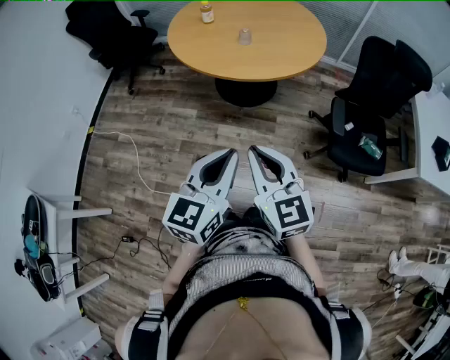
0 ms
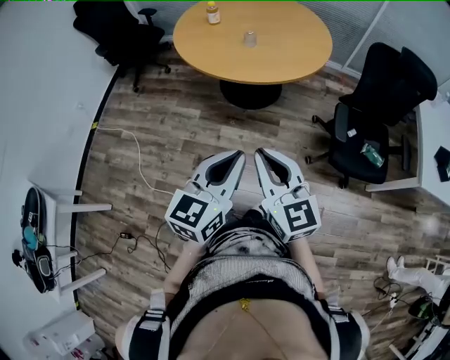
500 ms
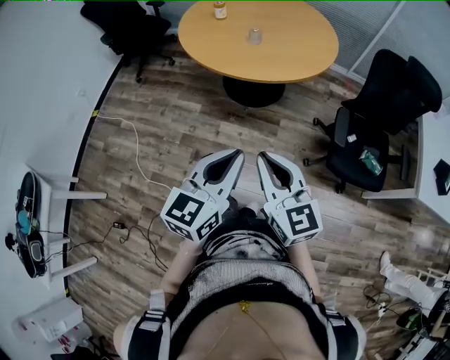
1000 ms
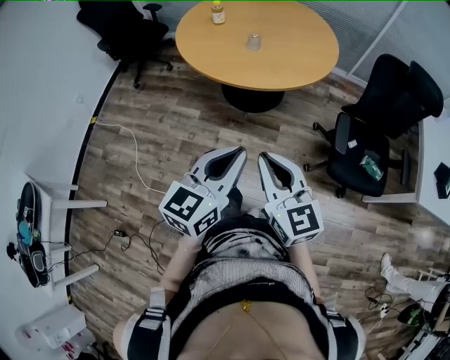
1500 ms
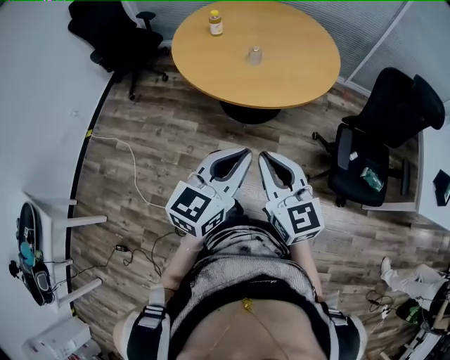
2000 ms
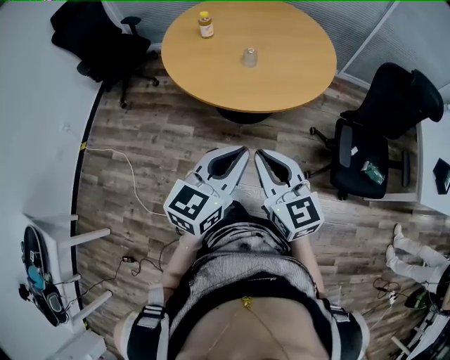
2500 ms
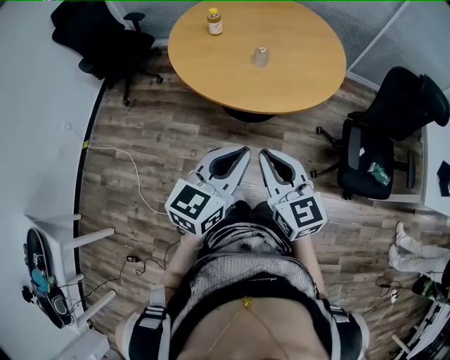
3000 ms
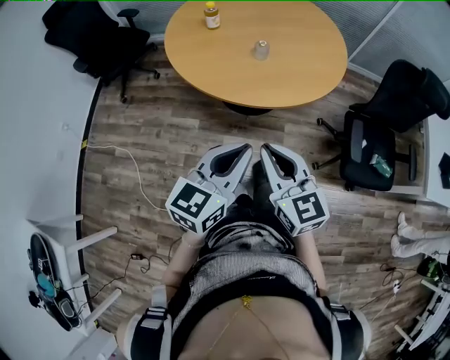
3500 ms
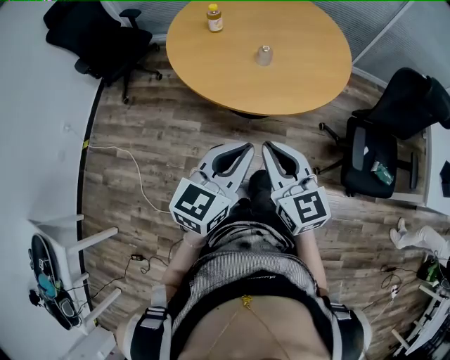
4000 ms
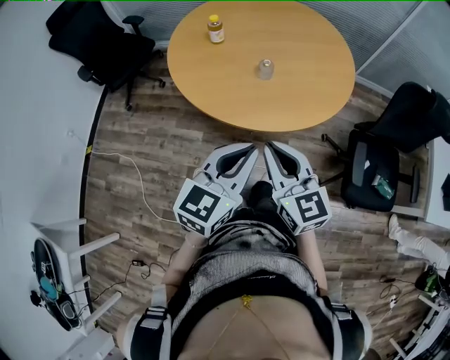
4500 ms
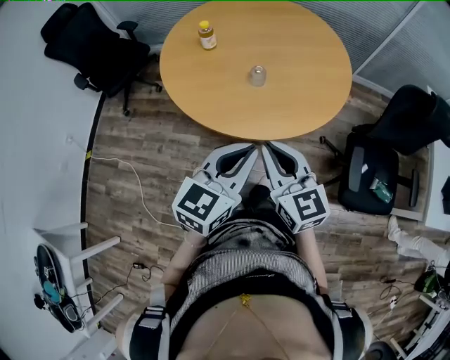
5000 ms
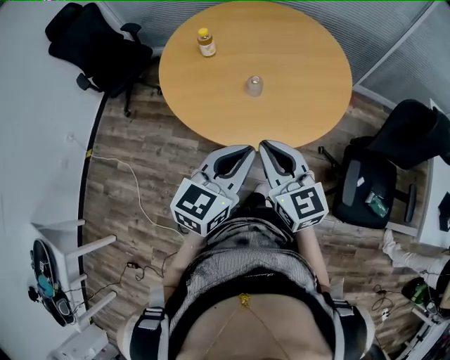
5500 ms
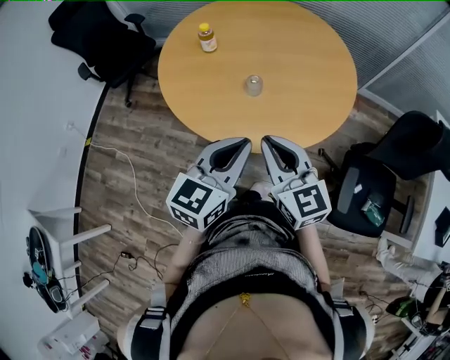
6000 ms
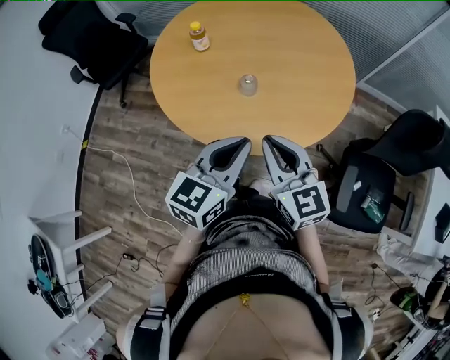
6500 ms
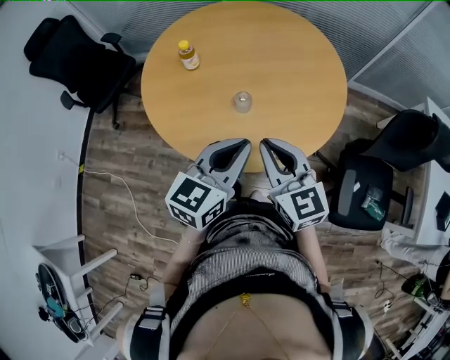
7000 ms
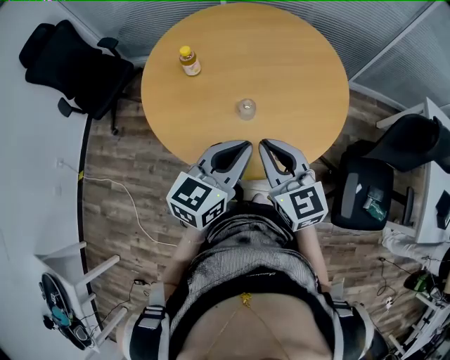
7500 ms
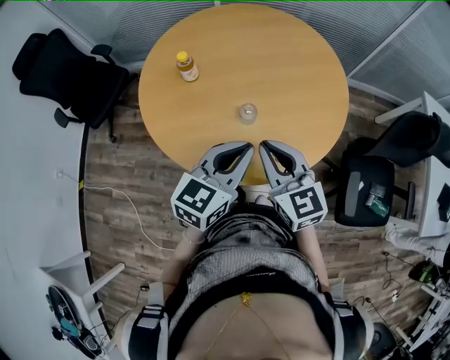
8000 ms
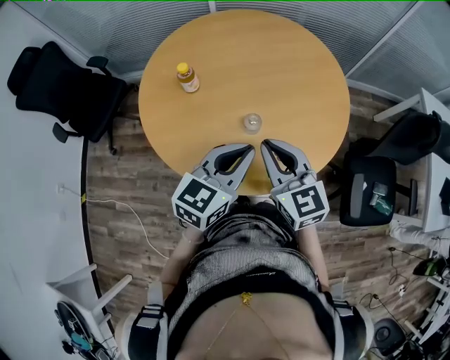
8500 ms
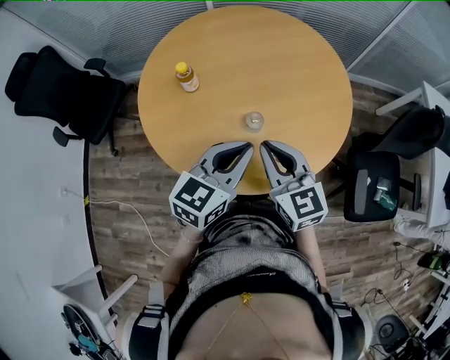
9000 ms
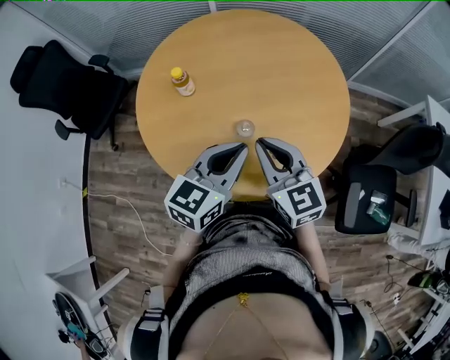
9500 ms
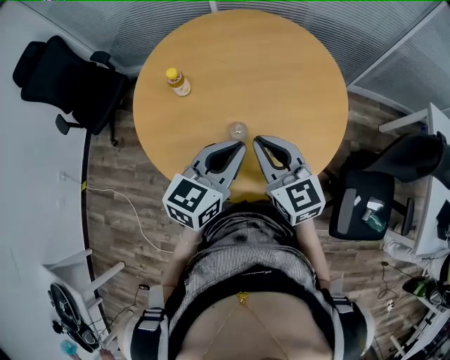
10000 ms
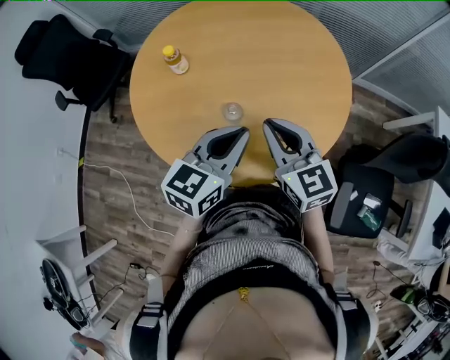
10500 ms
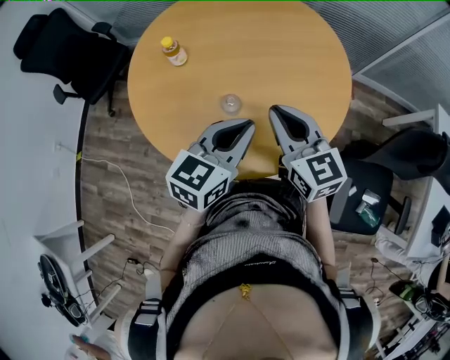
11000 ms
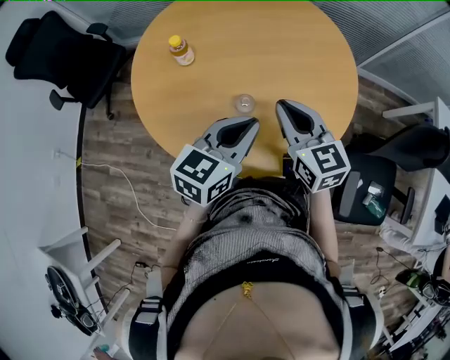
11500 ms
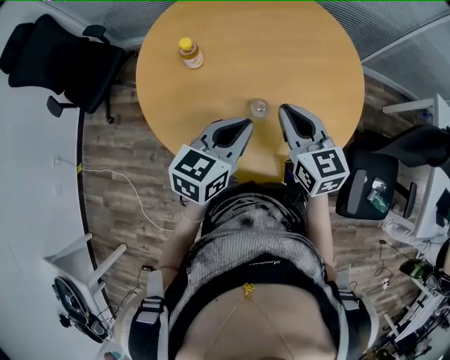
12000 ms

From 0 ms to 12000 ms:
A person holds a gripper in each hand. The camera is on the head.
From 0 ms to 2000 ms: Both grippers move forward, about 15 cm.
From 2000 ms to 4000 ms: The two grippers go some 15 cm forward and to the left.
From 4000 ms to 6000 ms: Both grippers travel together forward and to the right, about 20 cm.
From 6000 ms to 8000 ms: Both grippers move forward, some 10 cm.
From 8000 ms to 10000 ms: The grippers both shift forward by approximately 10 cm.
From 10000 ms to 12000 ms: The right gripper reaches approximately 5 cm to the right, then returns, while the left gripper heads to the left, covering approximately 5 cm.

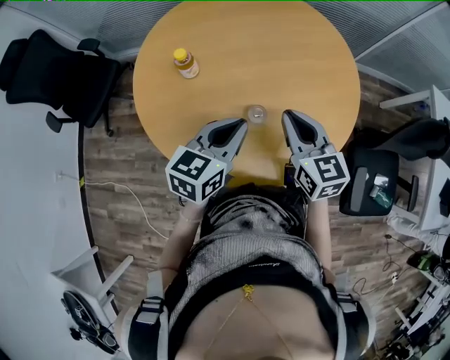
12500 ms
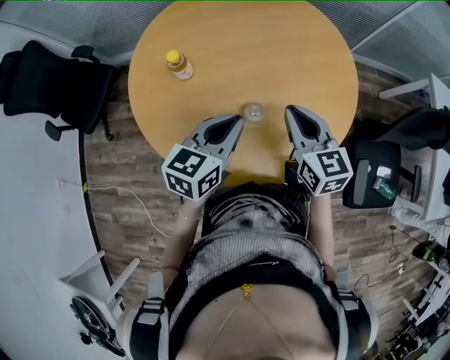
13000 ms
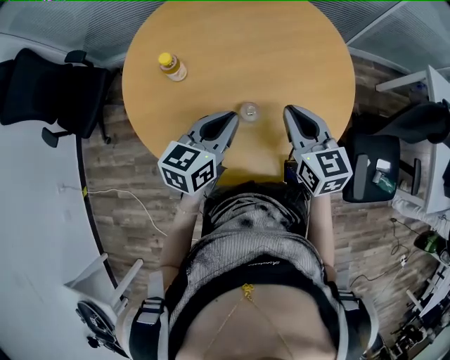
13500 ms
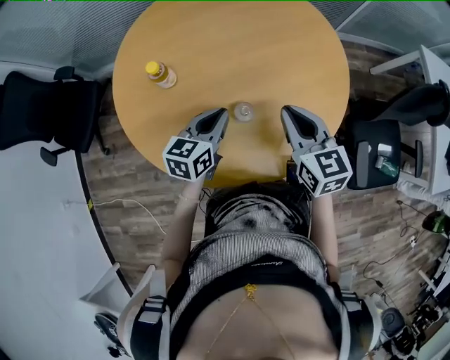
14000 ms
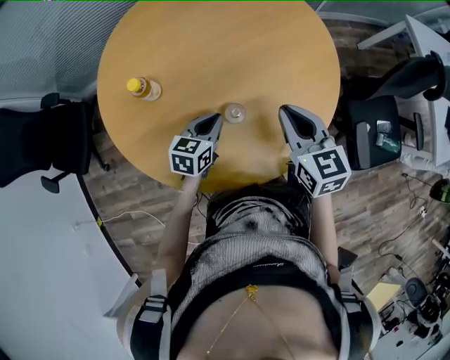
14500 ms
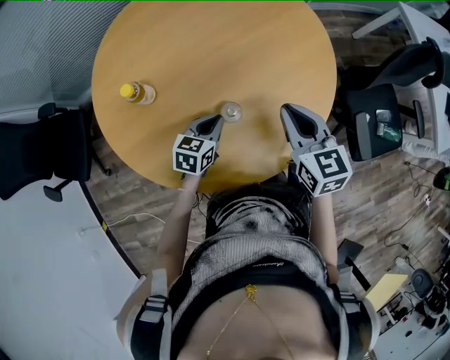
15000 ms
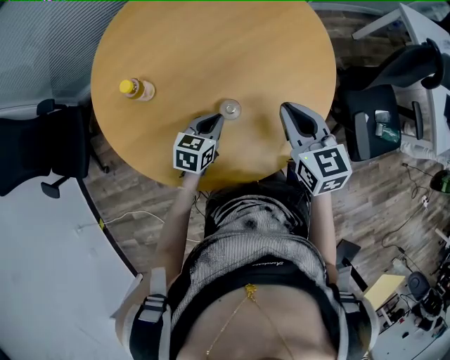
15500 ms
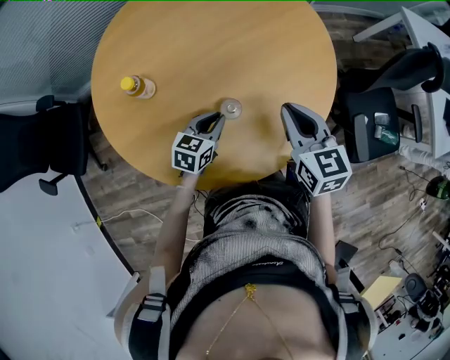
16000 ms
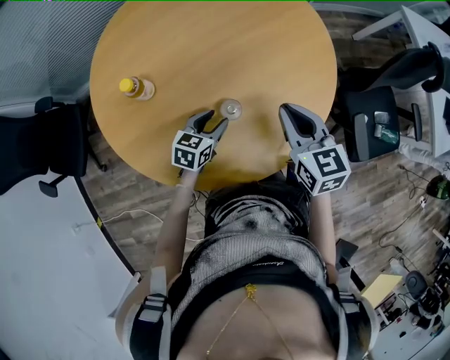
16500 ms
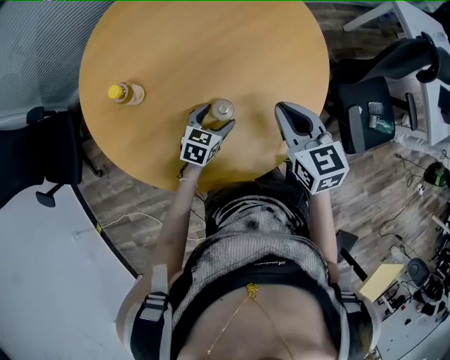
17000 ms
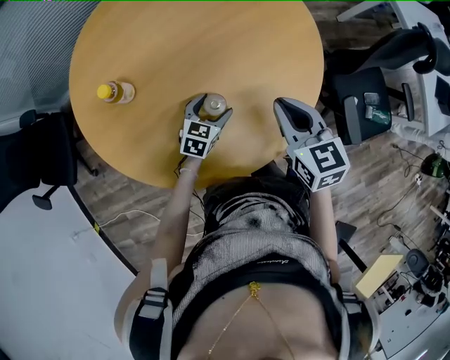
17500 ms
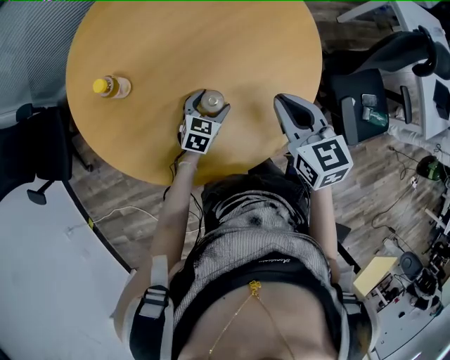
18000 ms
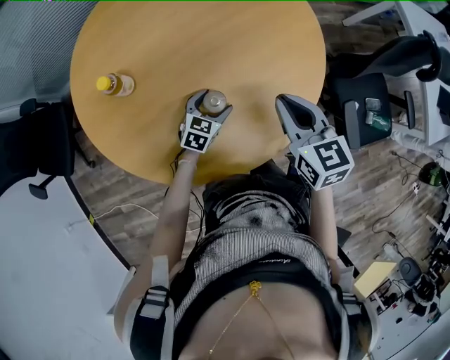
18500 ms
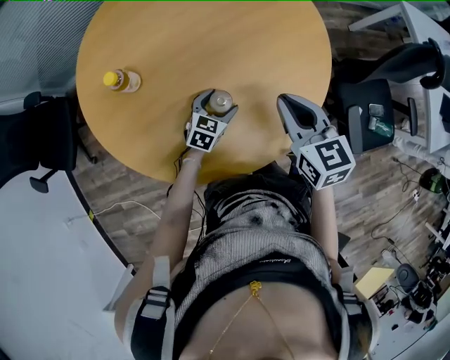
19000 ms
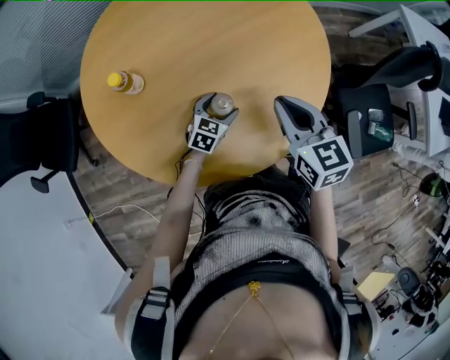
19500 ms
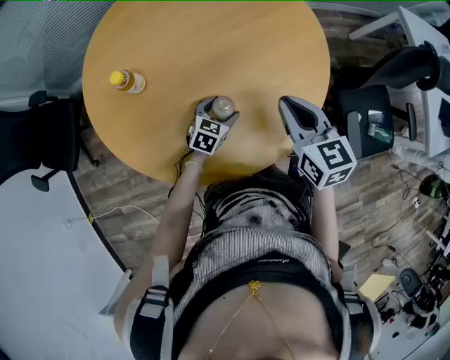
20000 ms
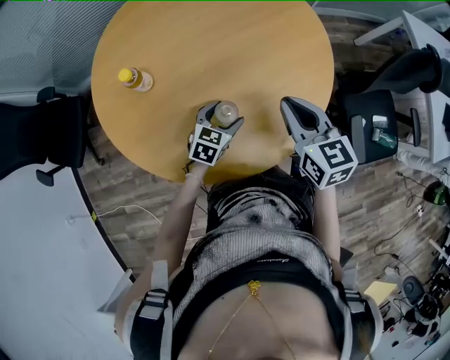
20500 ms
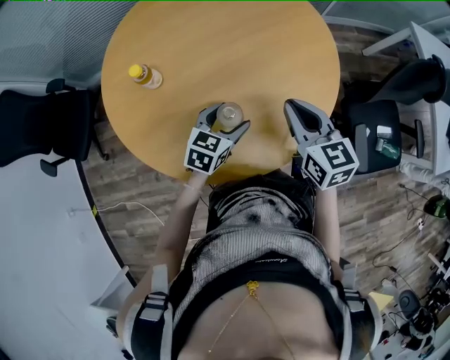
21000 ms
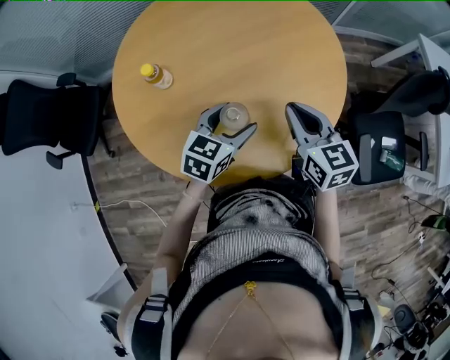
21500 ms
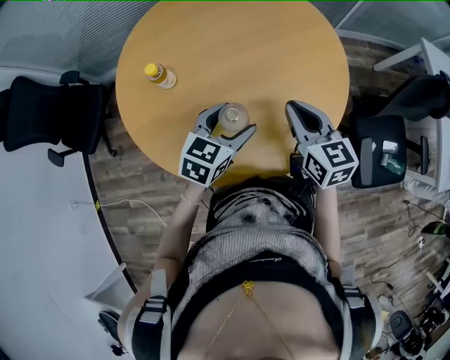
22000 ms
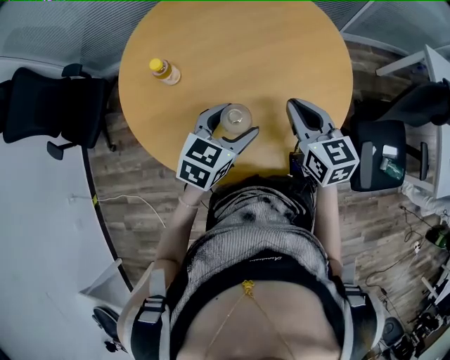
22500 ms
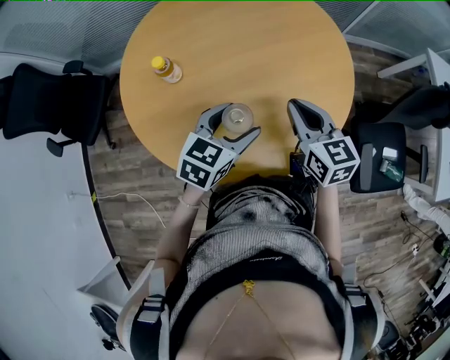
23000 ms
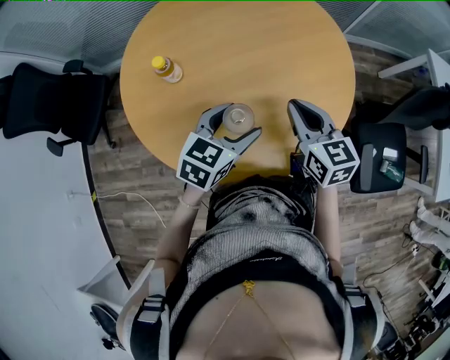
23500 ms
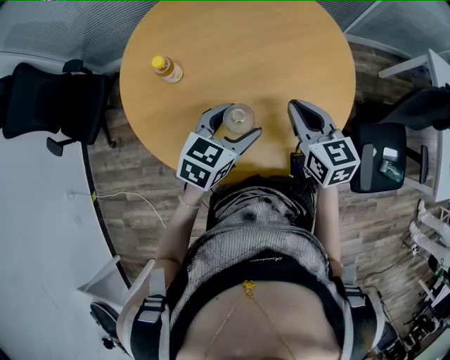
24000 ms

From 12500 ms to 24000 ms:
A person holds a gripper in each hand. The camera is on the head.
From 12500 ms to 14500 ms: The left gripper travels downward by roughly 15 cm. The right gripper changes place by about 5 cm.
From 14500 ms to 16500 ms: The left gripper opens its fingers.
From 16500 ms to 18500 ms: The left gripper shifts approximately 5 cm downward and to the right, and opens its fingers.
From 18500 ms to 20000 ms: The grippers stay close to where they were, moving slightly.
From 20000 ms to 22000 ms: The left gripper travels upward by some 20 cm.
From 22000 ms to 24000 ms: The grippers make only small movements.

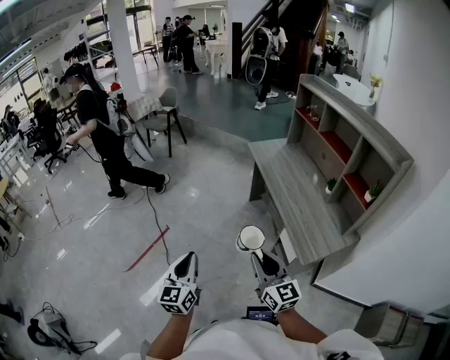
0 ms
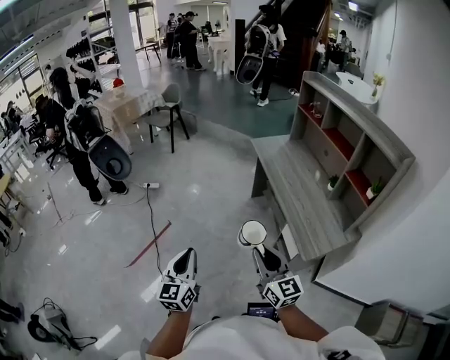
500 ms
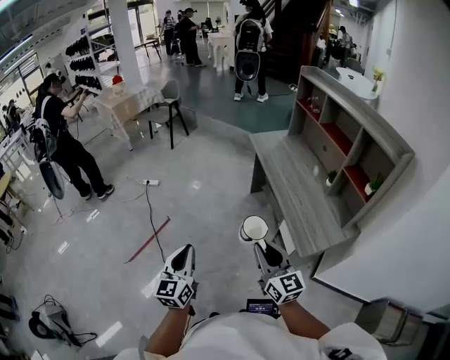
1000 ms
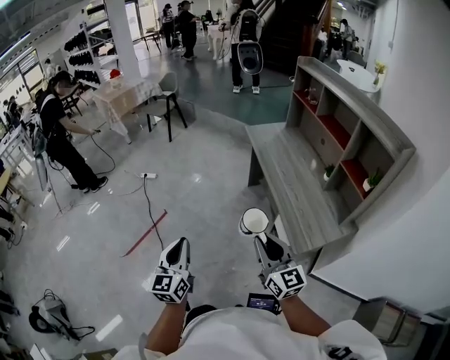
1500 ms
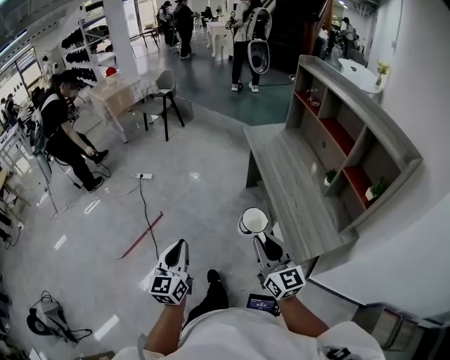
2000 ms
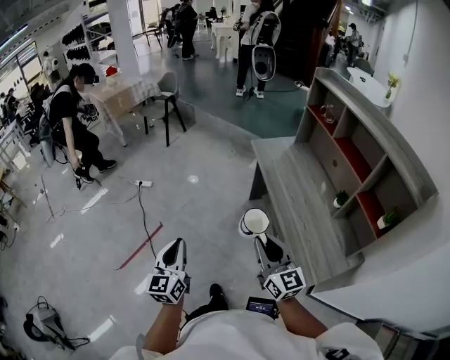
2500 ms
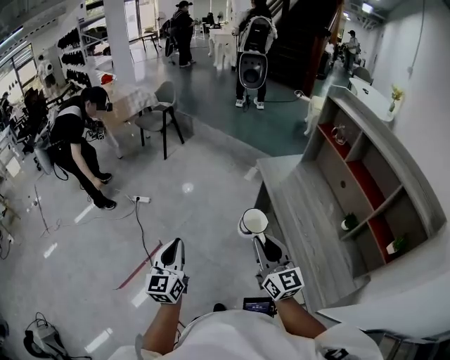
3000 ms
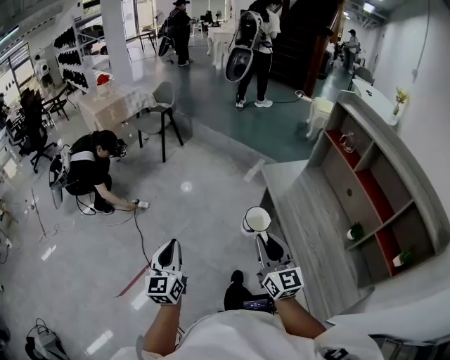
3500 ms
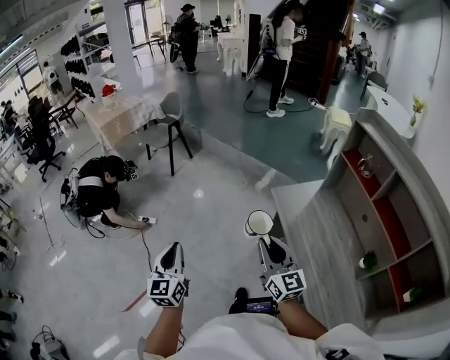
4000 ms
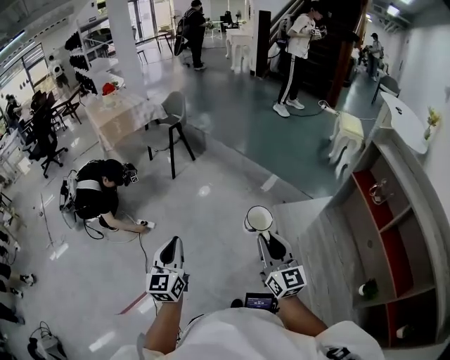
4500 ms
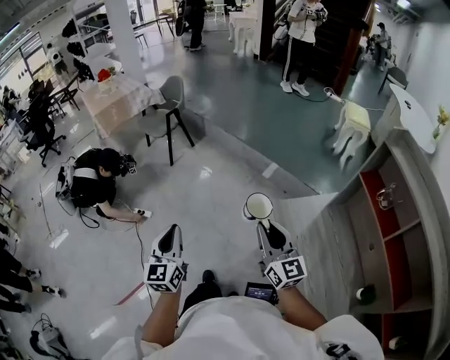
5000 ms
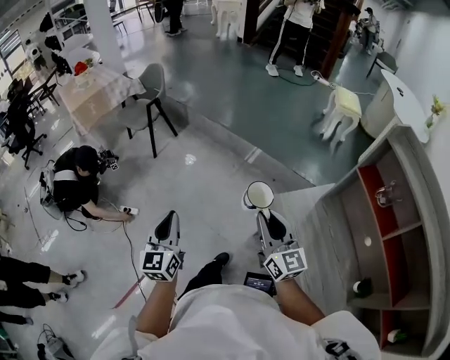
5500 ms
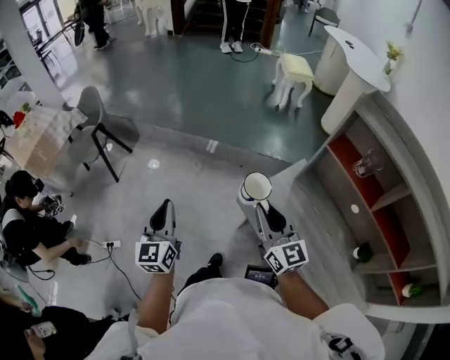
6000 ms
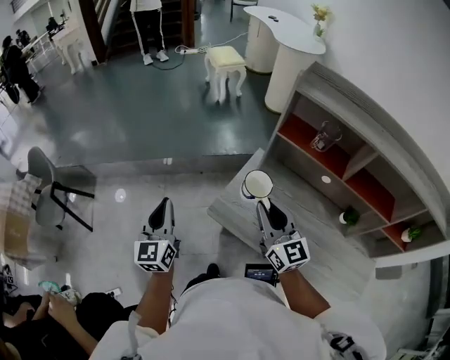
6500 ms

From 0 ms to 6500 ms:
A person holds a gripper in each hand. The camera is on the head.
From 0 ms to 2000 ms: The right gripper heads to the right and forward, covering some 10 cm; the left gripper changes place by about 5 cm.
From 2000 ms to 4500 ms: The two grippers travel together, forward, about 60 cm.
From 4500 ms to 6500 ms: The left gripper changes place by some 50 cm, and changes its angle by about 50 degrees. The right gripper shifts by roughly 25 cm, and turns by some 40 degrees.
